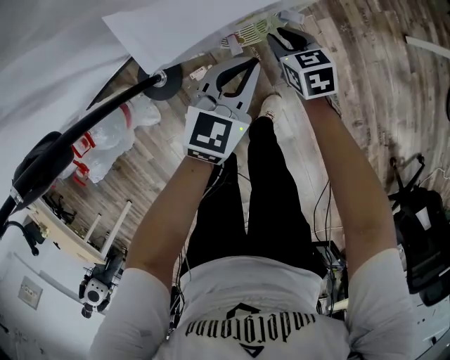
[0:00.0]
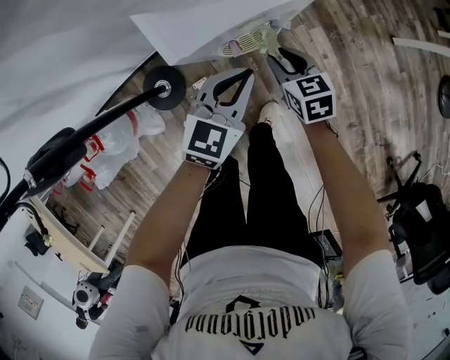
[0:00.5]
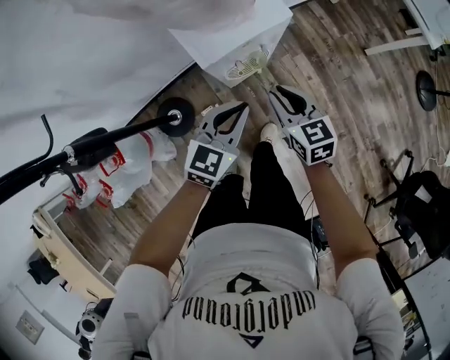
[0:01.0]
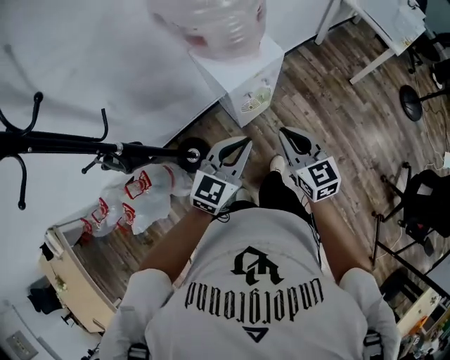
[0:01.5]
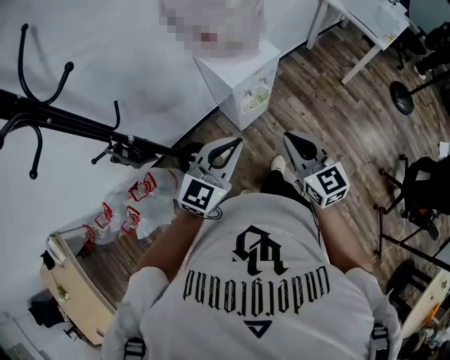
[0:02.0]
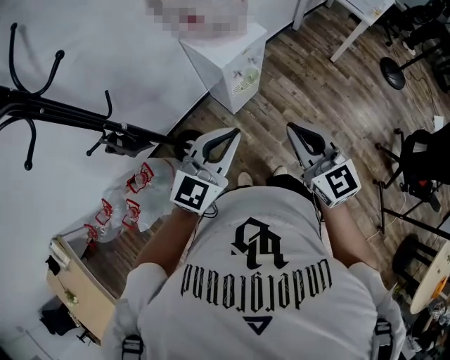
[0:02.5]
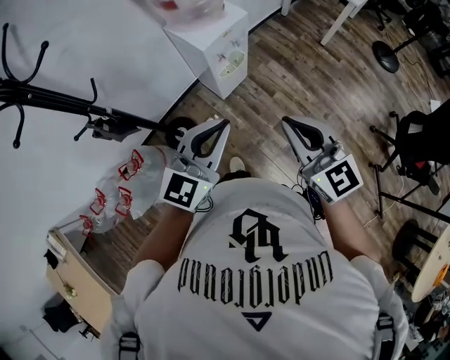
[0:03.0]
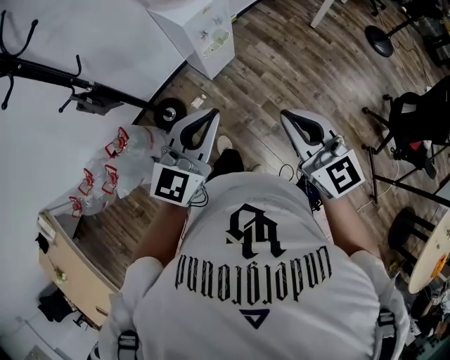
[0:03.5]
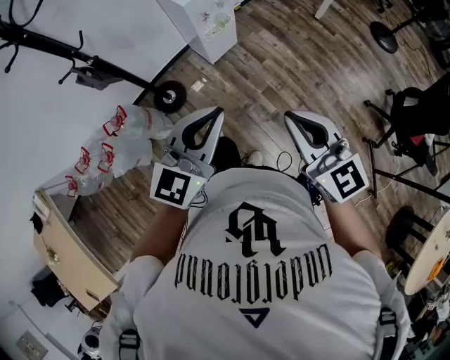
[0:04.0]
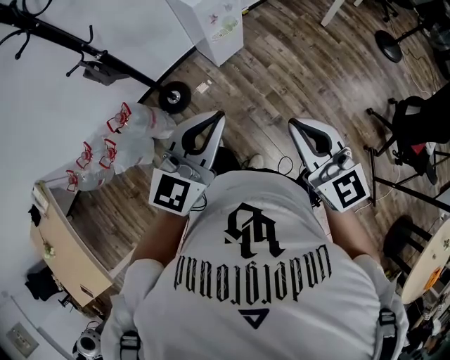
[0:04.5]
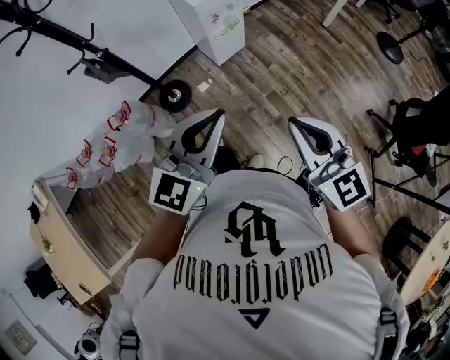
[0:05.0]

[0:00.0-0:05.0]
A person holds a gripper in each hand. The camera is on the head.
0:00.0 to 0:02.5: The two grippers go approximately 60 cm upward and backward. The left gripper swivels some 30 degrees. Meanwhile the right gripper tilts its fingers about 40 degrees upward, and closes its fingers.
0:02.5 to 0:05.0: The left gripper travels backward by some 25 cm, while the right gripper is displaced backward and to the right by approximately 30 cm.

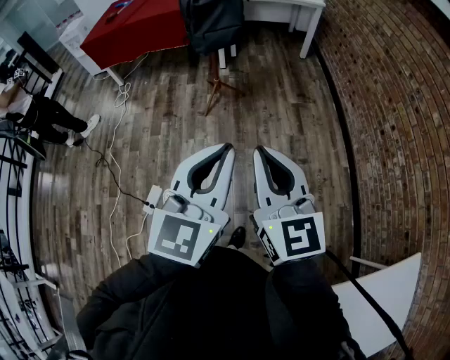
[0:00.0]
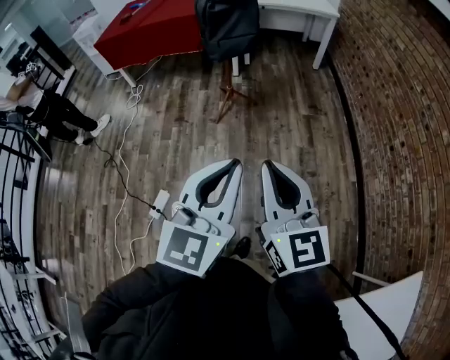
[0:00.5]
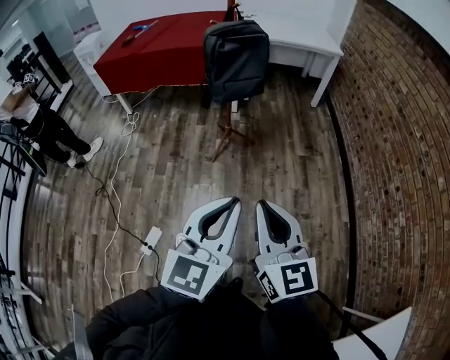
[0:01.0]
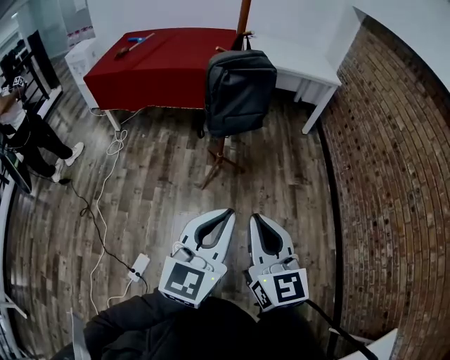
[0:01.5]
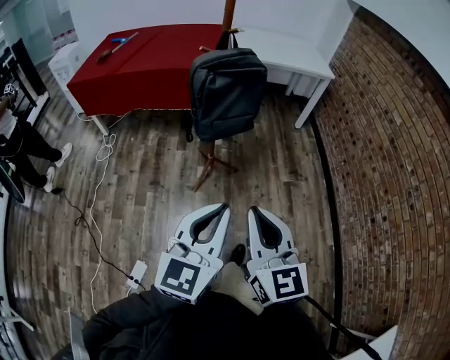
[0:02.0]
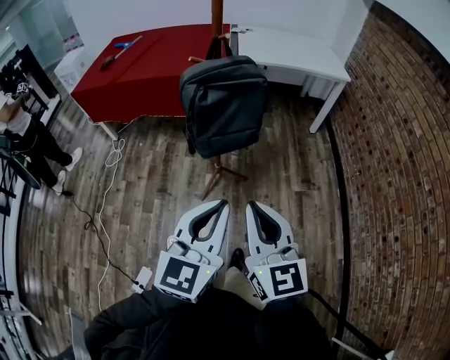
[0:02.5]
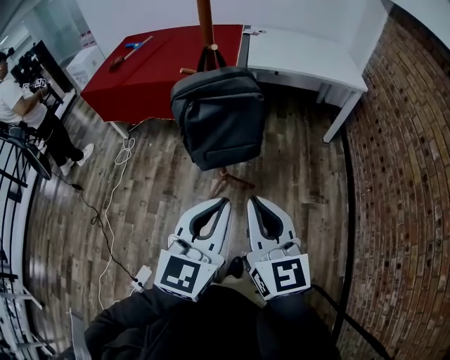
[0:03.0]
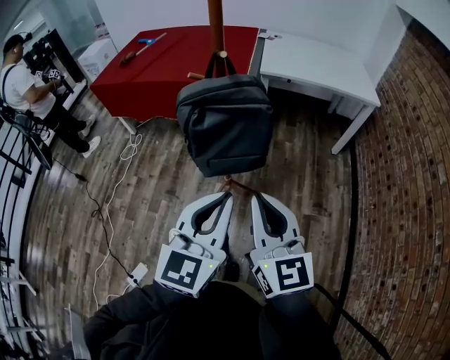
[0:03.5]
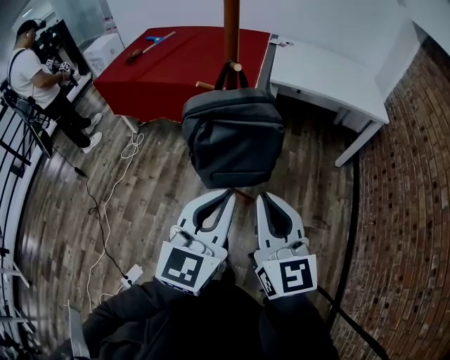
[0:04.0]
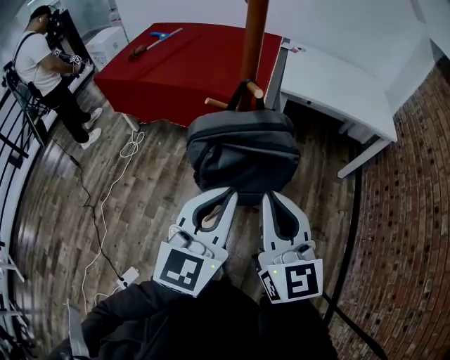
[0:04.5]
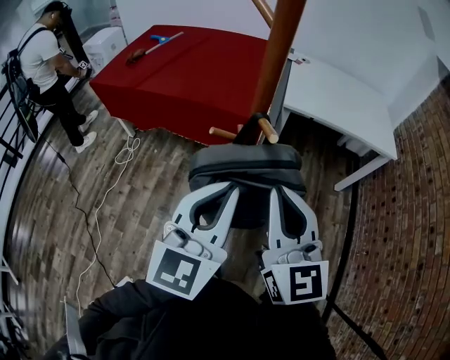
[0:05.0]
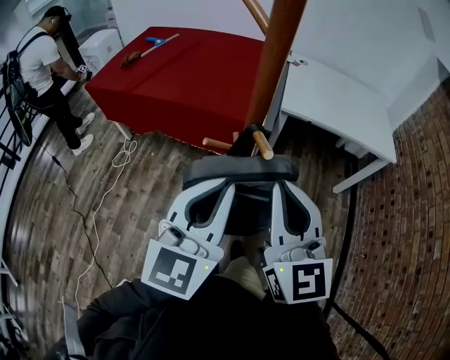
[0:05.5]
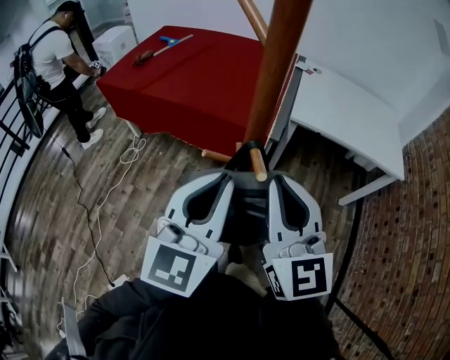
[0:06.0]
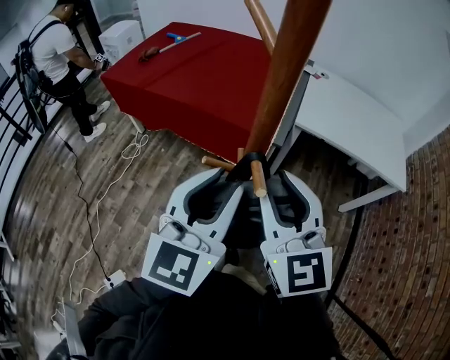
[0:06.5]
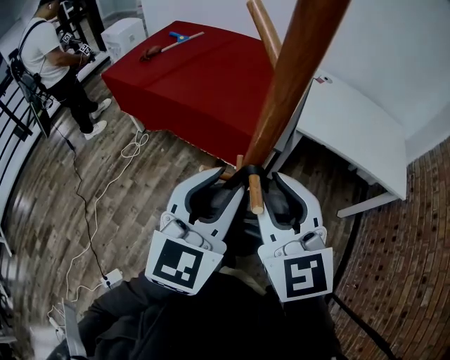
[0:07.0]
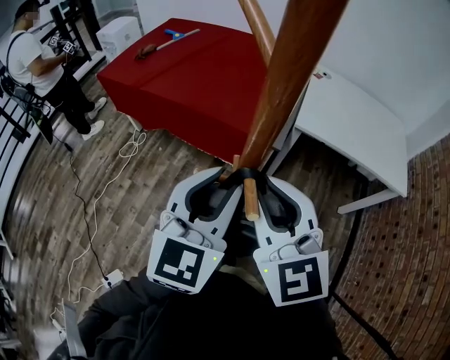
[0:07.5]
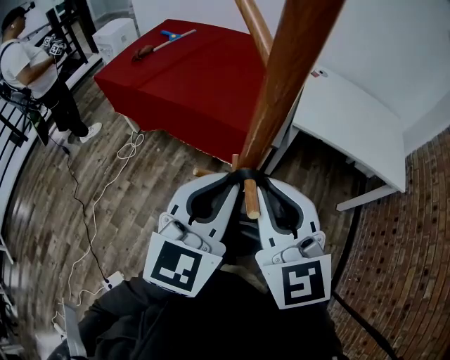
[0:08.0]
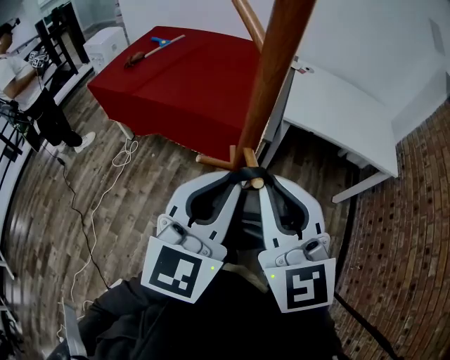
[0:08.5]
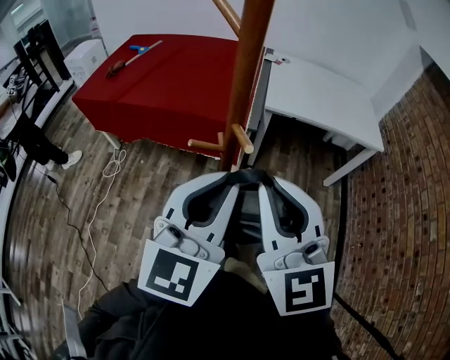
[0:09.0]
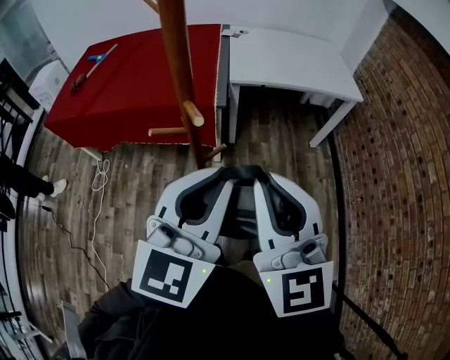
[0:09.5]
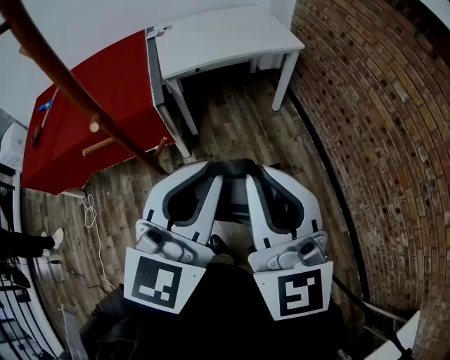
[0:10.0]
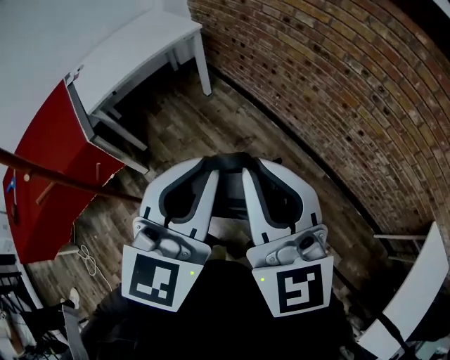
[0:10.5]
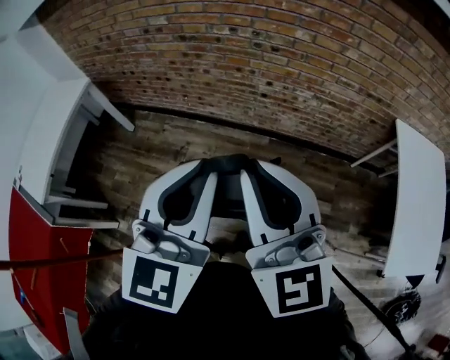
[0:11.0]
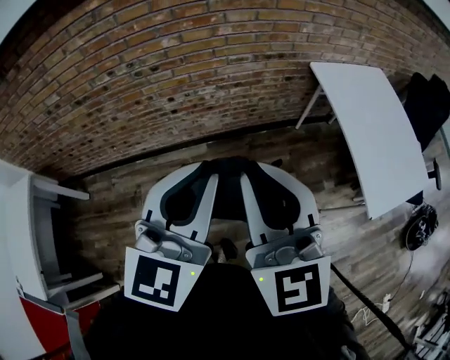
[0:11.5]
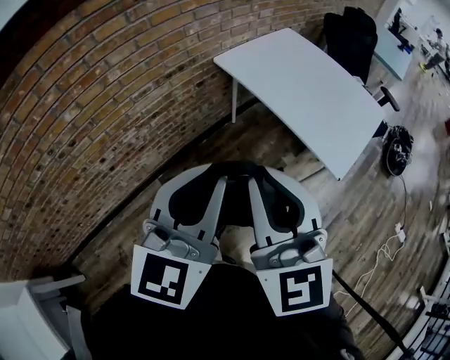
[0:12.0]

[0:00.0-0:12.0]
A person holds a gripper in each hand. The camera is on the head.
0:00.0 to 0:02.0: The two grippers go some 30 cm forward.
0:02.0 to 0:04.0: Both grippers move forward, about 30 cm.
0:04.0 to 0:06.0: Both grippers move forward, approximately 25 cm.
0:06.0 to 0:08.0: The right gripper shifts by some 5 cm. The left gripper is displaced forward by about 5 cm, and opens and closes again.
0:08.0 to 0:10.0: The left gripper changes place by approximately 25 cm, and turns by roughly 40 degrees, while the right gripper shifts by about 30 cm, and turns by roughly 40 degrees.
0:10.0 to 0:12.0: The pair of grippers is taken approximately 80 cm. The right gripper swivels approximately 110 degrees. The left gripper changes its angle by roughly 110 degrees.

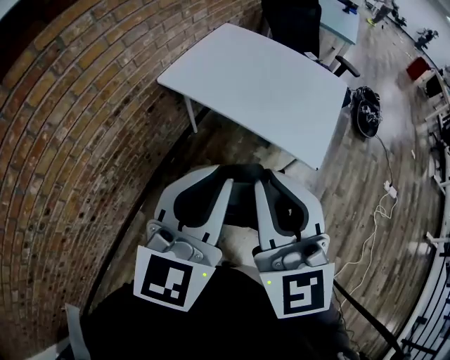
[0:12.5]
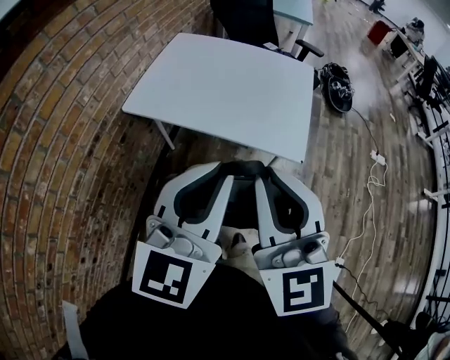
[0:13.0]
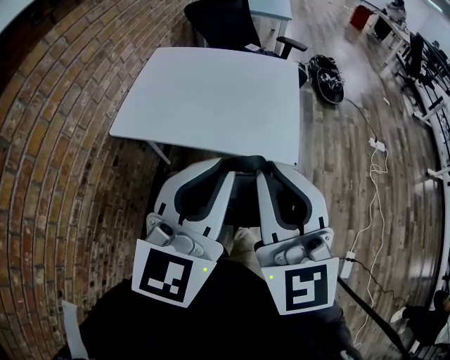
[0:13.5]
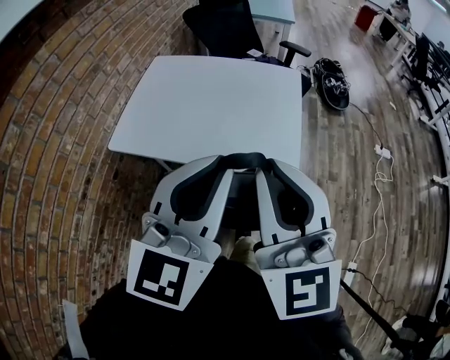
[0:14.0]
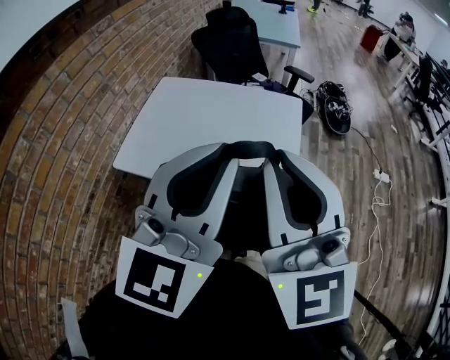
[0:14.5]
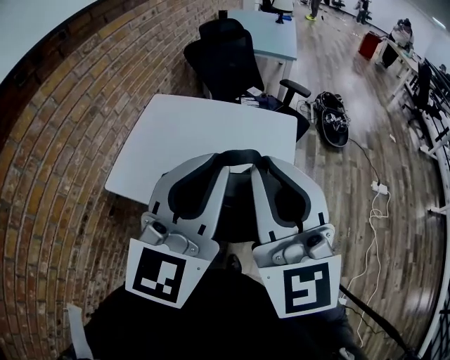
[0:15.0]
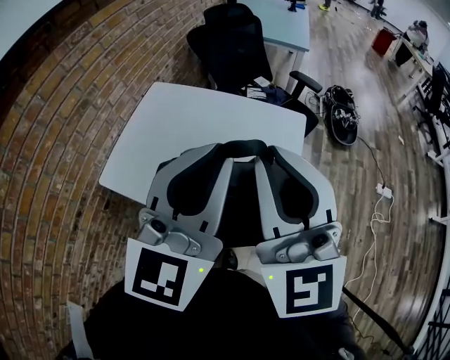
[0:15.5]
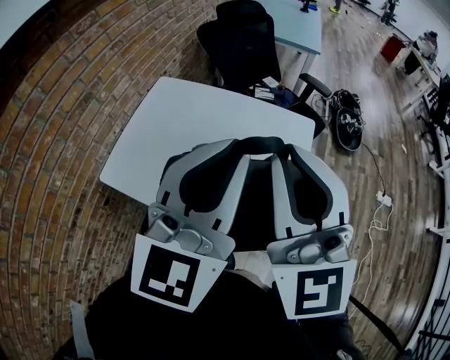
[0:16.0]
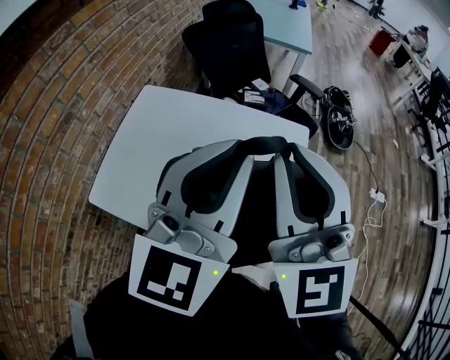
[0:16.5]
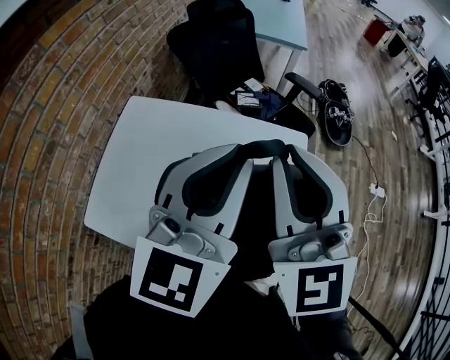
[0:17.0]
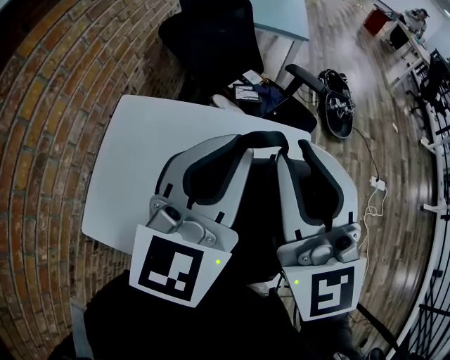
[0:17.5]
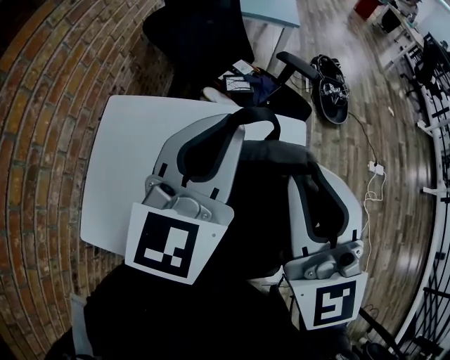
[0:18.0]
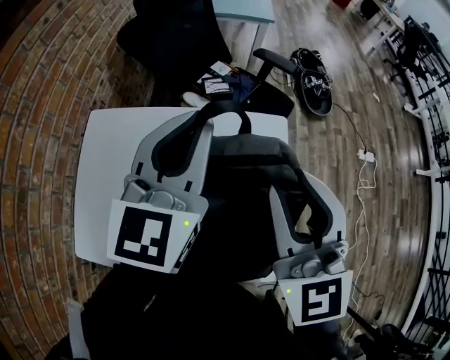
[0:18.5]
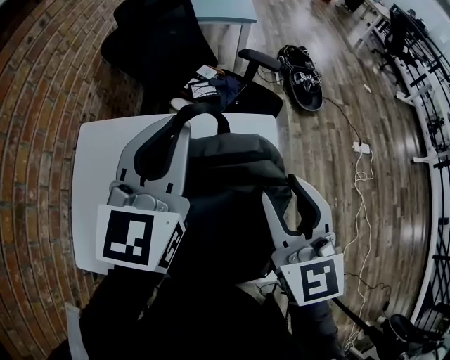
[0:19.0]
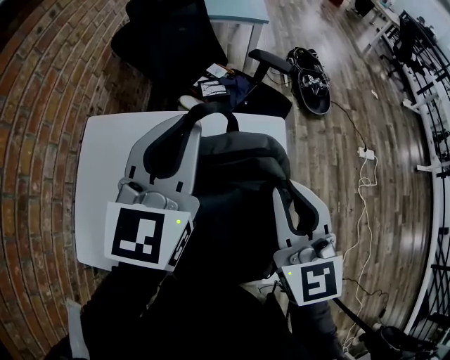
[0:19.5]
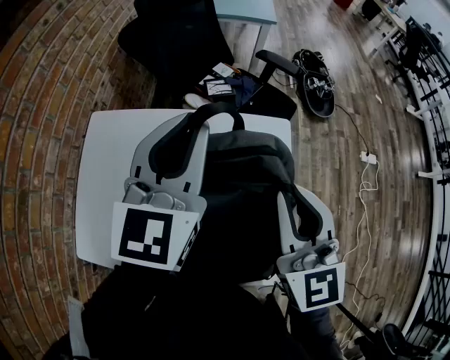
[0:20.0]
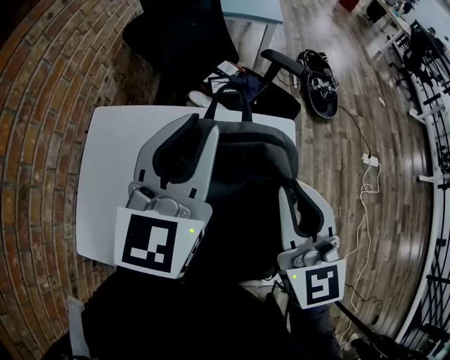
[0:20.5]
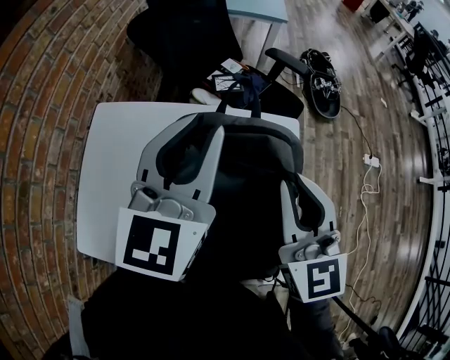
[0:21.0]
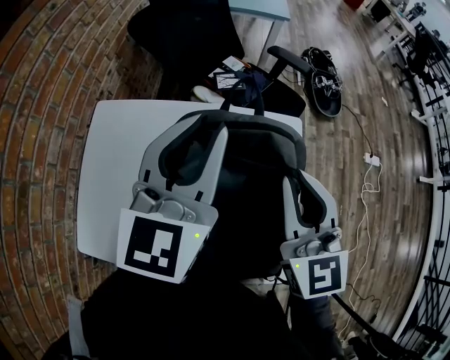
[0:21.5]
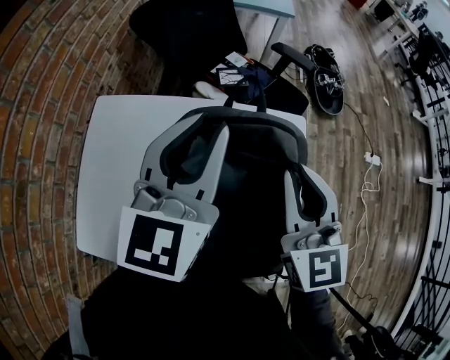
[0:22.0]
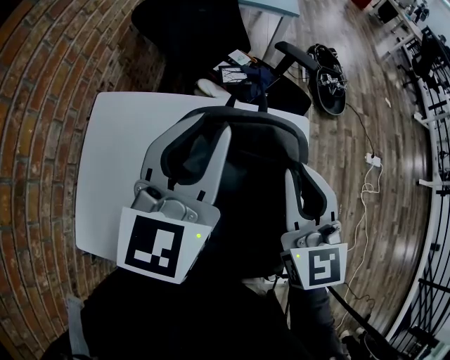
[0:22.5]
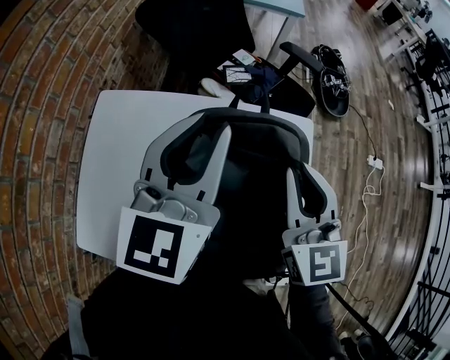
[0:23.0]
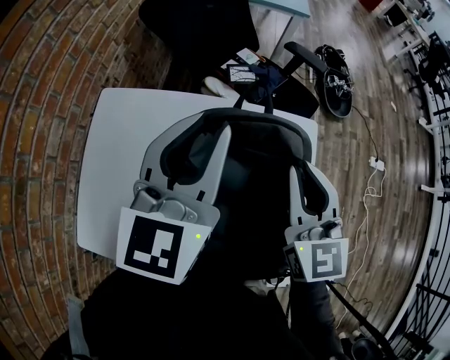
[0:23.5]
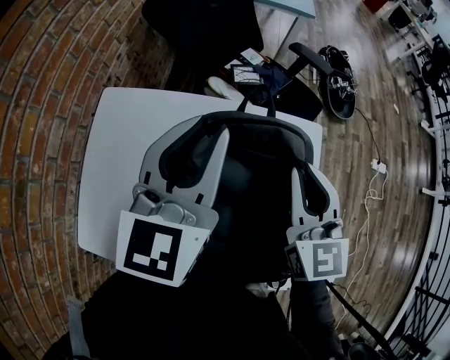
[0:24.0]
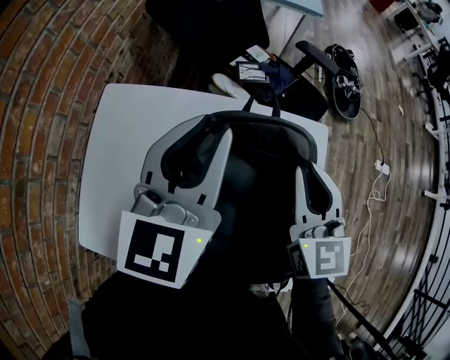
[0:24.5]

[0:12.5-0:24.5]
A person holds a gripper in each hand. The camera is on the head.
0:12.5 to 0:14.5: The right gripper travels forward, to the right and upward by about 25 cm. Meanwhile the left gripper travels forward, upward and to the right by approximately 25 cm, and changes its angle by approximately 20 degrees.
0:14.5 to 0:16.5: The two grippers go roughly 25 cm forward.
0:16.5 to 0:18.5: The left gripper heads forward, covering some 20 cm. Meanwhile the right gripper travels forward, downward and to the right by approximately 15 cm.
0:18.5 to 0:20.5: The right gripper is displaced downward by about 5 cm.
0:20.5 to 0:22.5: The right gripper ends up about 5 cm from where it was.
0:22.5 to 0:24.5: The left gripper shifts by some 5 cm, while the right gripper travels downward by about 5 cm.
